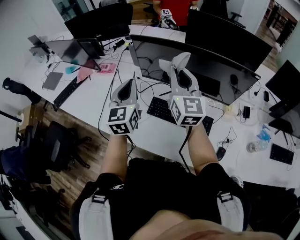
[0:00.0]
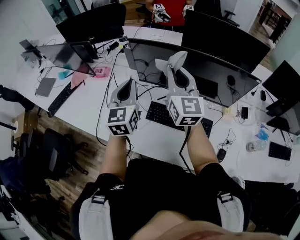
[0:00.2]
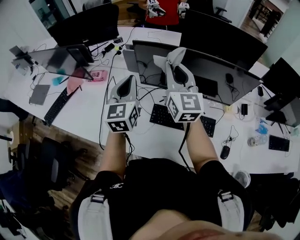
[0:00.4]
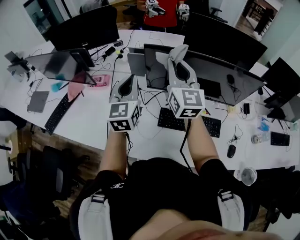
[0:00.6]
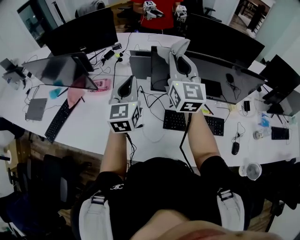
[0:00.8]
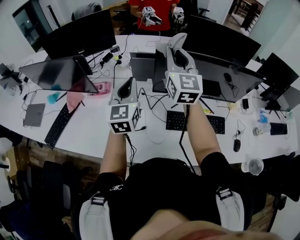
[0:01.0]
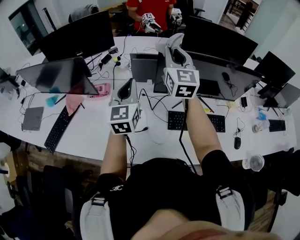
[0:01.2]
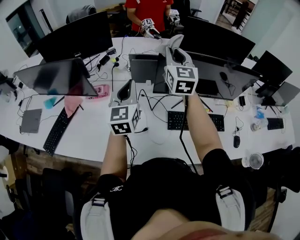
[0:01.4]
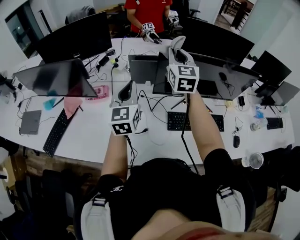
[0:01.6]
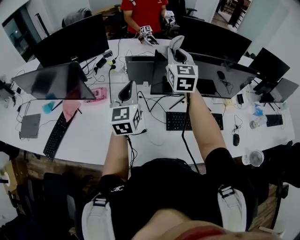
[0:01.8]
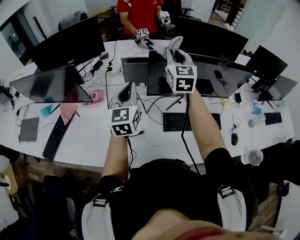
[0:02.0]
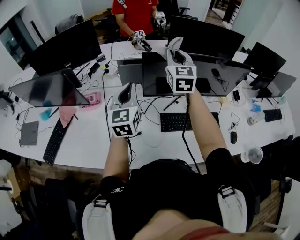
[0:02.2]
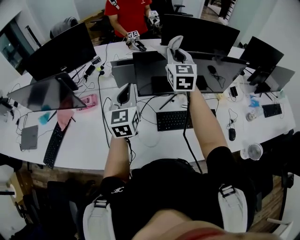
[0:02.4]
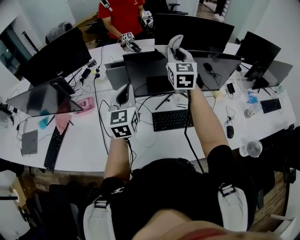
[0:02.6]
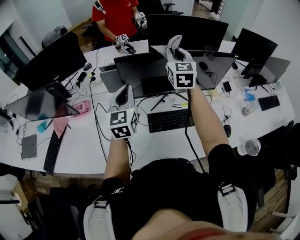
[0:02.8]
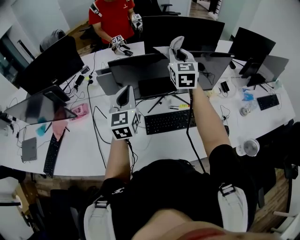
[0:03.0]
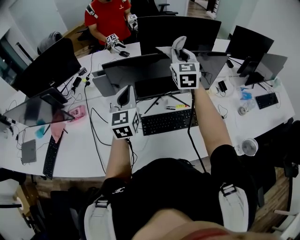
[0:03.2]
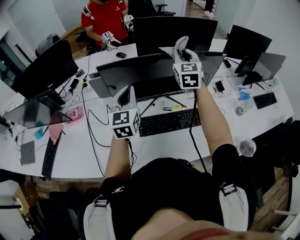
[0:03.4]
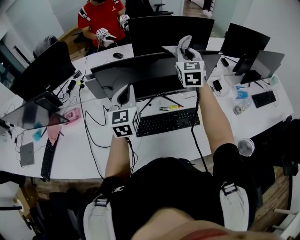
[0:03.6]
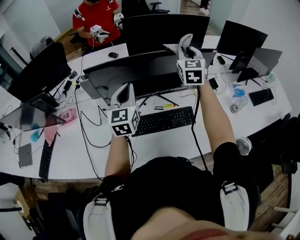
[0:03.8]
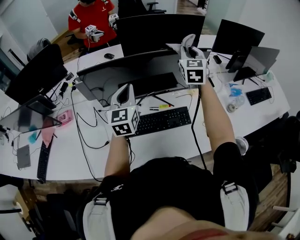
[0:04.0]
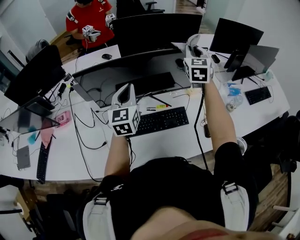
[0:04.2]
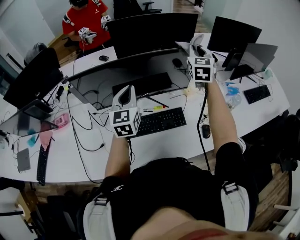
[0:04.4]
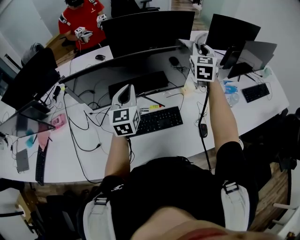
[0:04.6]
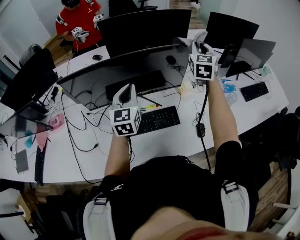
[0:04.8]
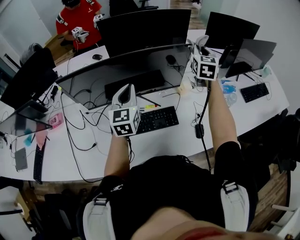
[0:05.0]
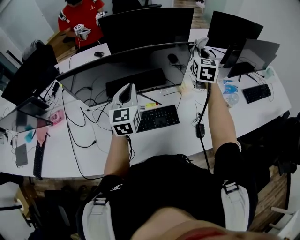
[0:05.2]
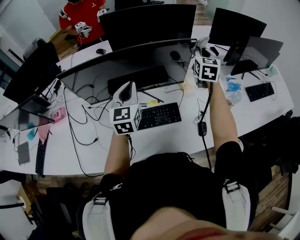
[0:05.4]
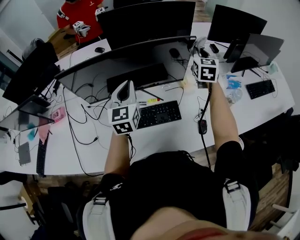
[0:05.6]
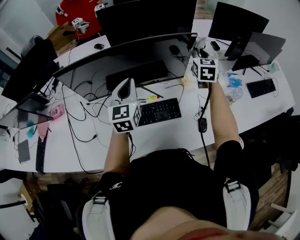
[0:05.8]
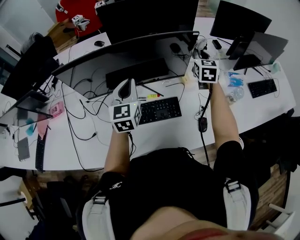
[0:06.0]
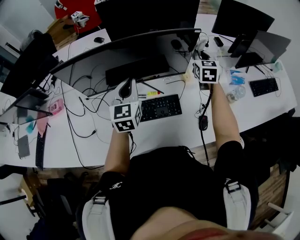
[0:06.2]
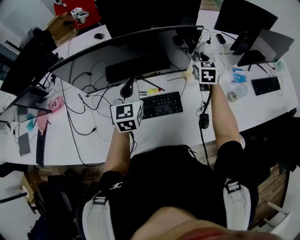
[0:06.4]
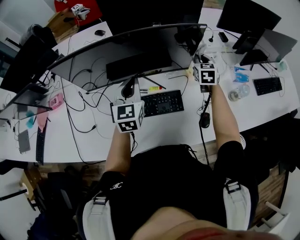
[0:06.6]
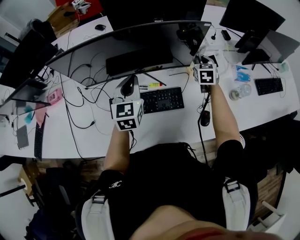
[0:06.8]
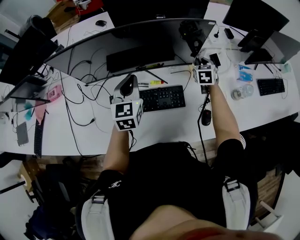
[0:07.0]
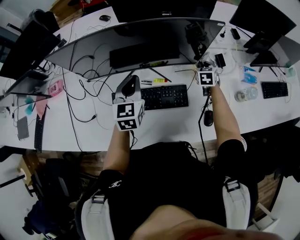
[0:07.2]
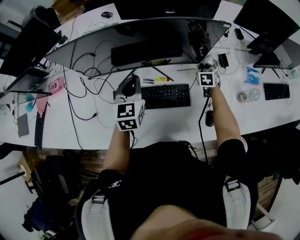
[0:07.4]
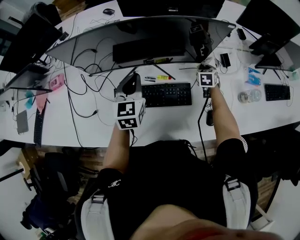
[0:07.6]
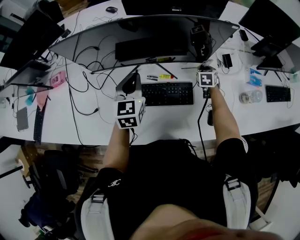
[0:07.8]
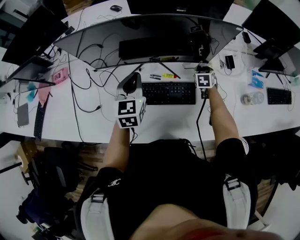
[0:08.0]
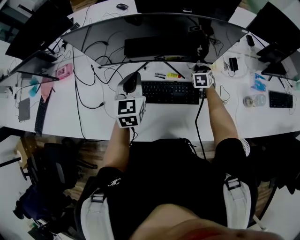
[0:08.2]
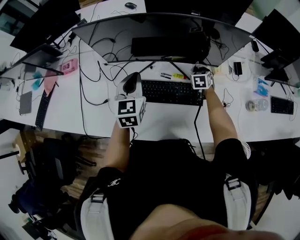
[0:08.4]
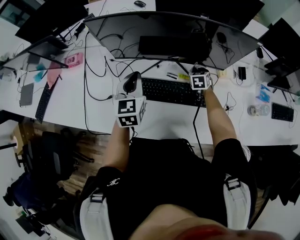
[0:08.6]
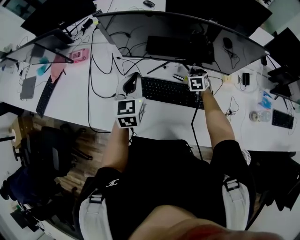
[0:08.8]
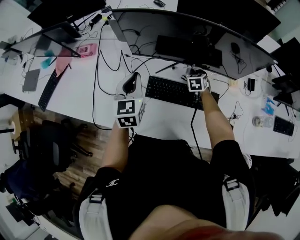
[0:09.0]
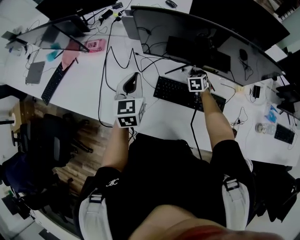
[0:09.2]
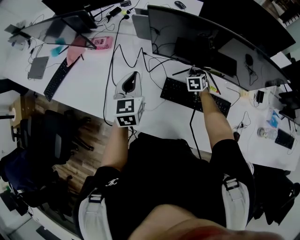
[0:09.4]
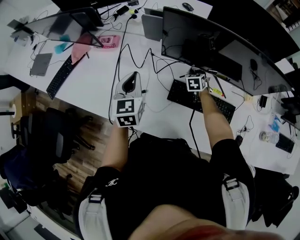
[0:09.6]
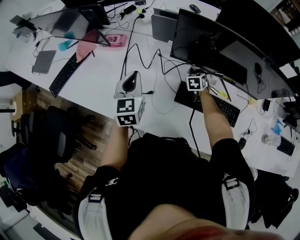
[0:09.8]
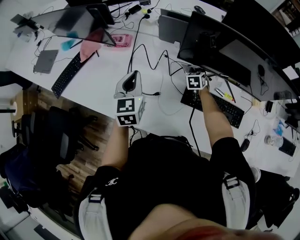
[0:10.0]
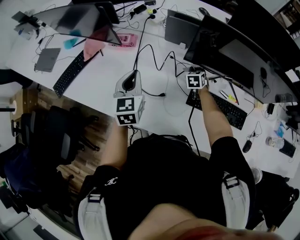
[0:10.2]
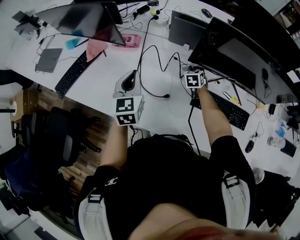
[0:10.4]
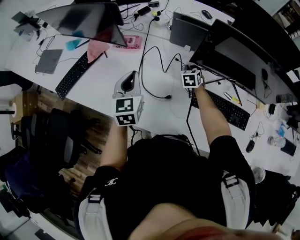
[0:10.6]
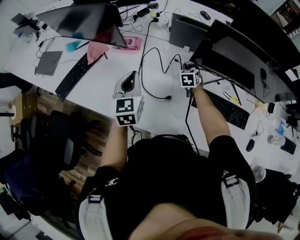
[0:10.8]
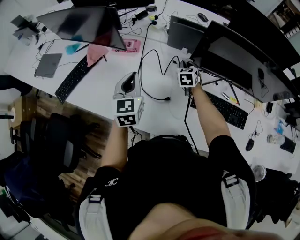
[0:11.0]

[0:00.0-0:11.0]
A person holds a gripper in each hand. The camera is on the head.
0:00.0 to 0:01.6: The left gripper is displaced to the left and forward by approximately 20 cm, while the right gripper moves forward and to the left, about 25 cm, and rotates roughly 30 degrees.
0:01.6 to 0:03.2: The two grippers go some 25 cm to the right.
0:03.2 to 0:04.8: The grippers both shift to the right by some 25 cm.
0:04.8 to 0:06.2: The right gripper goes about 15 cm downward.
0:06.2 to 0:07.8: The left gripper heads downward, covering about 10 cm. The right gripper is displaced downward by approximately 25 cm, and changes its angle by about 30 degrees.
0:07.8 to 0:09.4: Both grippers travel together to the left, roughly 35 cm. The left gripper rotates roughly 20 degrees; the right gripper turns by approximately 20 degrees.
0:09.4 to 0:11.0: Both grippers move to the left, some 25 cm.

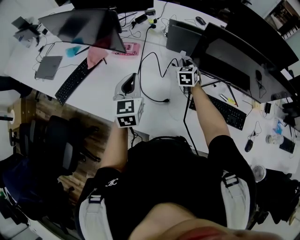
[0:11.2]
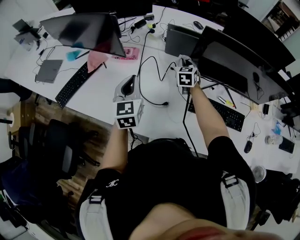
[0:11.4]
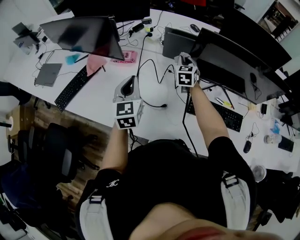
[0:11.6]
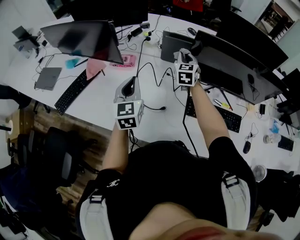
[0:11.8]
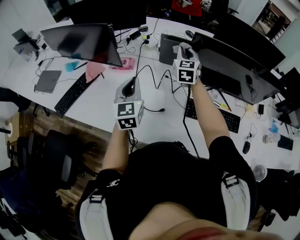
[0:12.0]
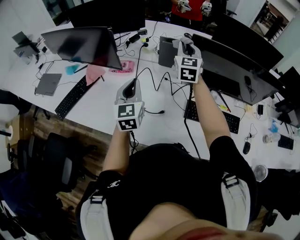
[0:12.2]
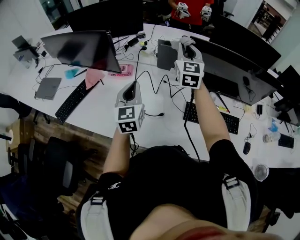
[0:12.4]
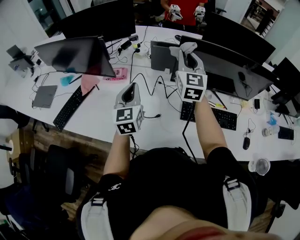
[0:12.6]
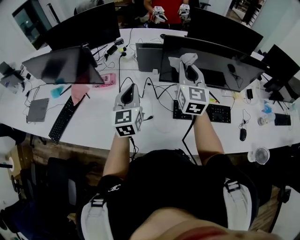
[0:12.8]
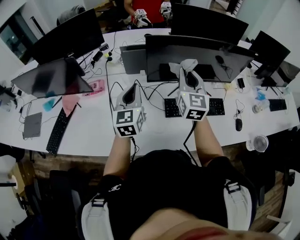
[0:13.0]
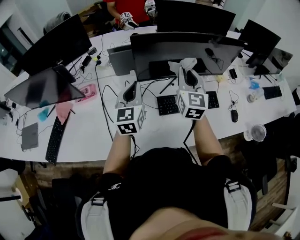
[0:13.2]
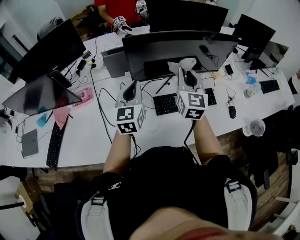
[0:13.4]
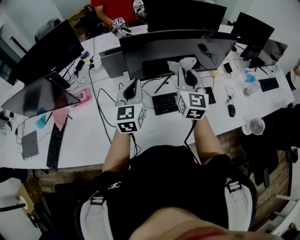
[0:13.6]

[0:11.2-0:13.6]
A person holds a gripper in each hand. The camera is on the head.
0:11.2 to 0:12.4: The right gripper goes approximately 25 cm upward, and tilts its fingers about 30 degrees upward.
0:12.4 to 0:13.6: The right gripper shifts by about 25 cm, and turns by about 20 degrees. The left gripper shifts by some 25 cm, and swivels some 30 degrees.

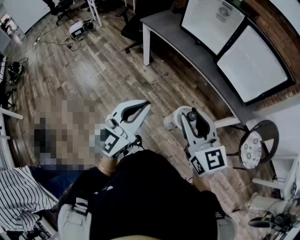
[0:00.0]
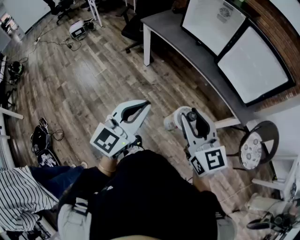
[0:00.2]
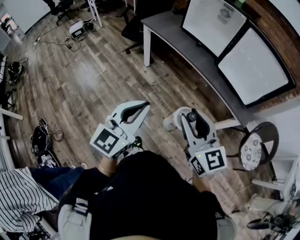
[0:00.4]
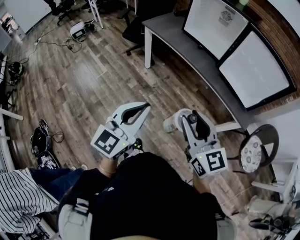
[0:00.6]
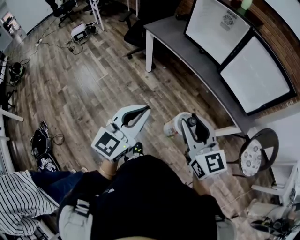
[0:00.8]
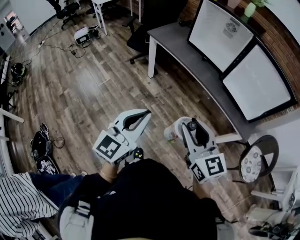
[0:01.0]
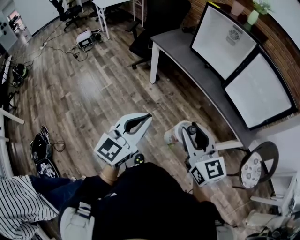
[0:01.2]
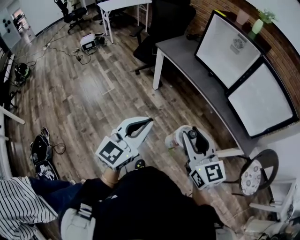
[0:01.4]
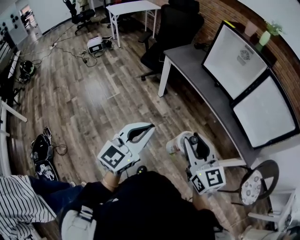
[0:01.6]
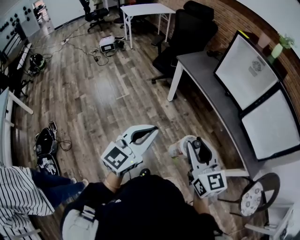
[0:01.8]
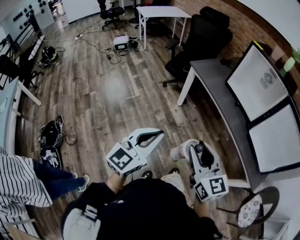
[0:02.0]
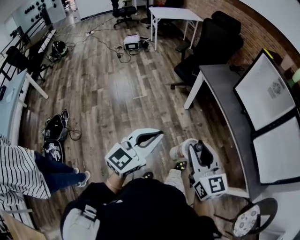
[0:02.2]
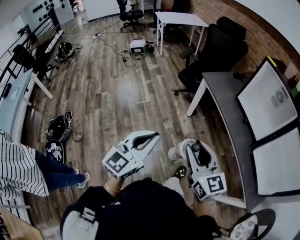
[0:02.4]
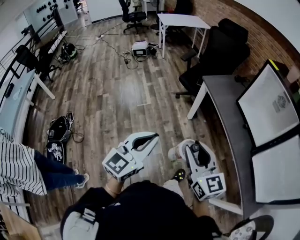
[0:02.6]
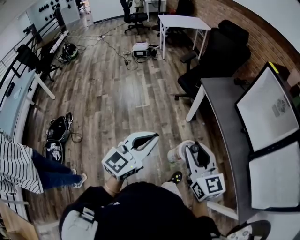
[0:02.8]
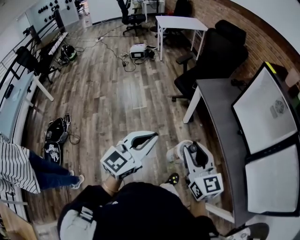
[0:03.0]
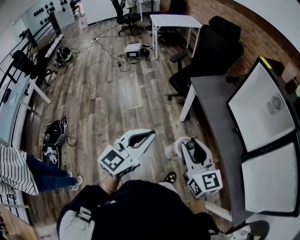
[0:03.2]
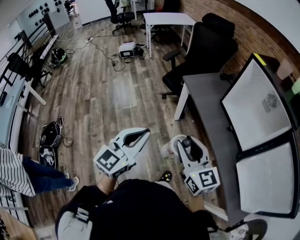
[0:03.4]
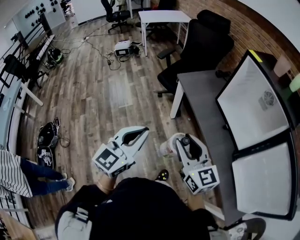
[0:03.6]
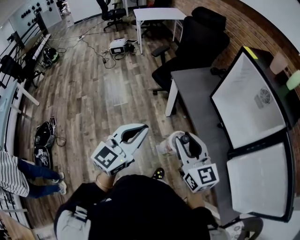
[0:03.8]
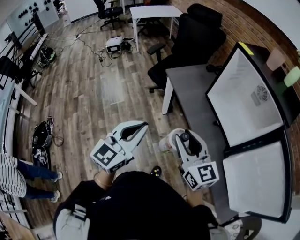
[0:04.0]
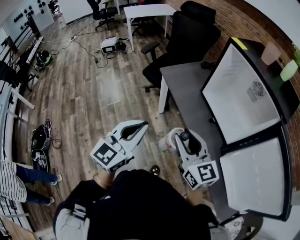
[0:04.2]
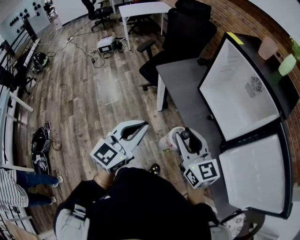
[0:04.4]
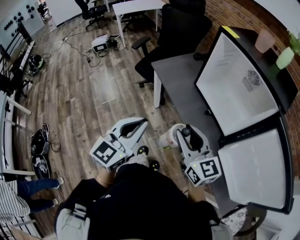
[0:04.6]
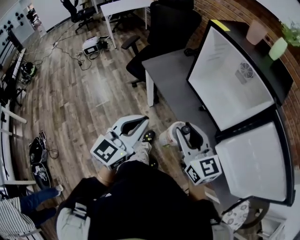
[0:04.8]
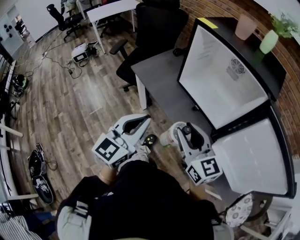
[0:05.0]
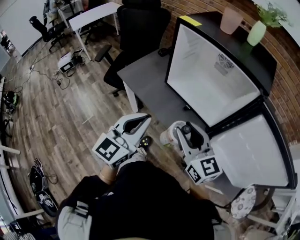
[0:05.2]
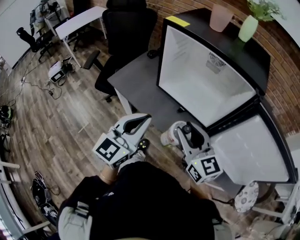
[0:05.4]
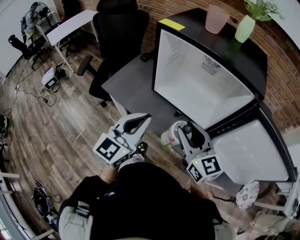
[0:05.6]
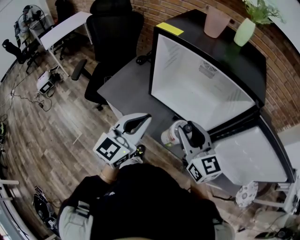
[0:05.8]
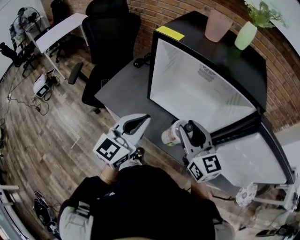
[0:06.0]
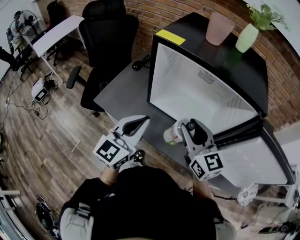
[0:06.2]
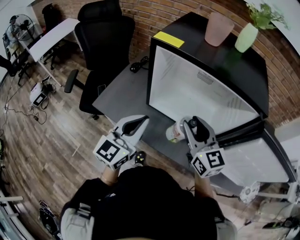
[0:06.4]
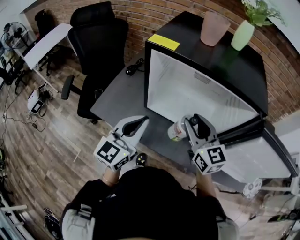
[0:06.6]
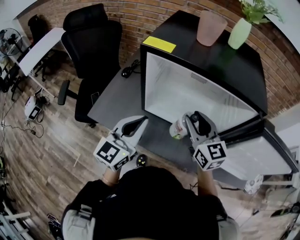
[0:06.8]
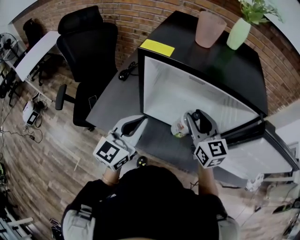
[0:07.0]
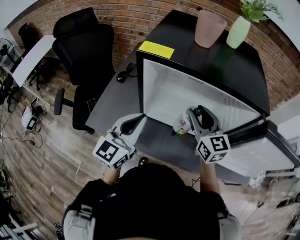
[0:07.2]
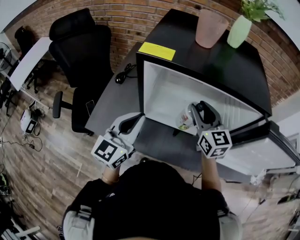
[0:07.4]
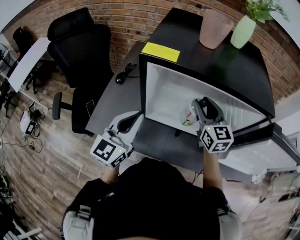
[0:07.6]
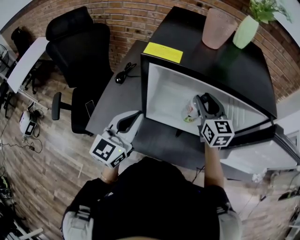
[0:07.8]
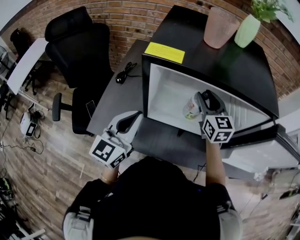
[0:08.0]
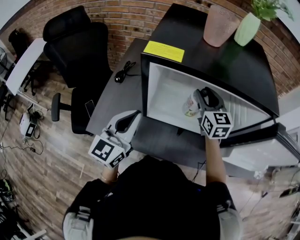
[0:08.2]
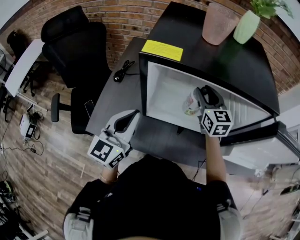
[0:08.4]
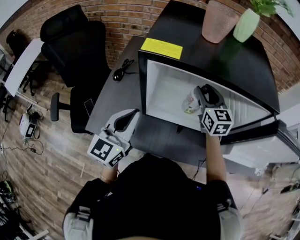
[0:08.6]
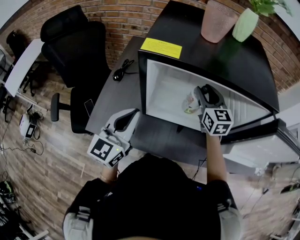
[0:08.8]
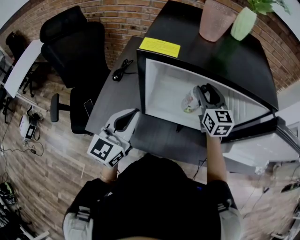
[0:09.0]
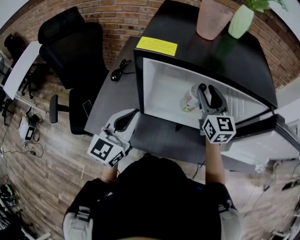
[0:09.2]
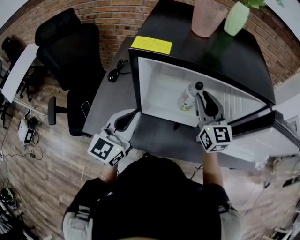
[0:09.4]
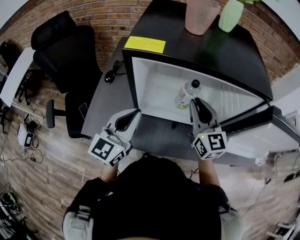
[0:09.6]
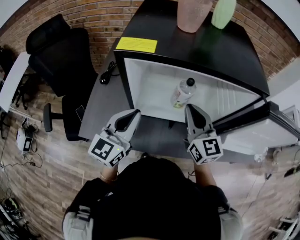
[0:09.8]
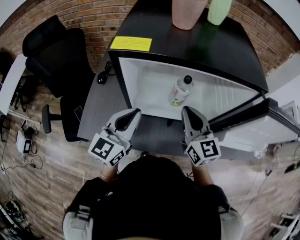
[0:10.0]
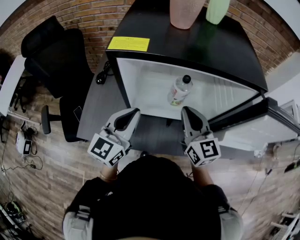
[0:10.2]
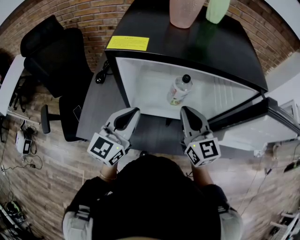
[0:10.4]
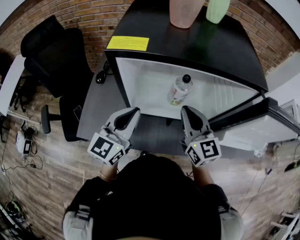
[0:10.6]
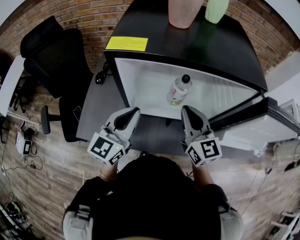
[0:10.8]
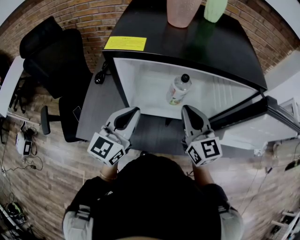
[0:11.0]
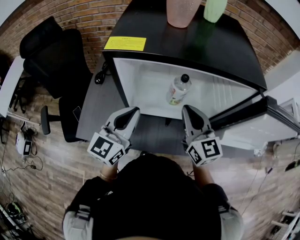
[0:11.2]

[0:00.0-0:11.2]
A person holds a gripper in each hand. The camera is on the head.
0:00.0 to 0:01.6: Both grippers travel together to the left and forward, approximately 15 cm.
0:01.6 to 0:03.2: Both grippers move forward, some 20 cm. The right gripper turns by about 20 degrees.
0:03.2 to 0:04.8: Both grippers travel together to the right and forward, approximately 20 cm.
0:04.8 to 0:06.4: The left gripper ends up some 25 cm from where it was, and turns by some 30 degrees. The right gripper shifts by some 25 cm, and swivels approximately 30 degrees.
0:06.4 to 0:08.0: The left gripper is displaced forward and to the left by some 10 cm; the right gripper shifts about 20 cm forward, and rotates some 20 degrees.
0:08.0 to 0:09.6: The right gripper goes some 10 cm backward, and closes up.
0:09.6 to 0:11.2: The grippers make only small movements.
